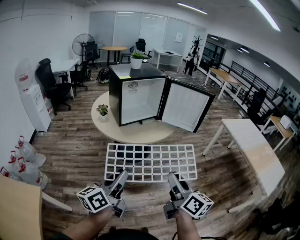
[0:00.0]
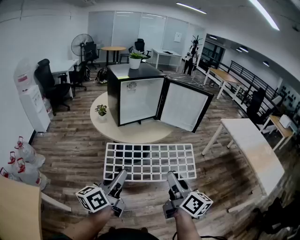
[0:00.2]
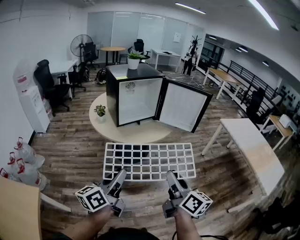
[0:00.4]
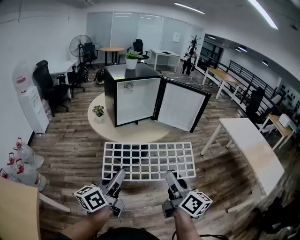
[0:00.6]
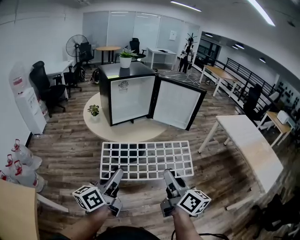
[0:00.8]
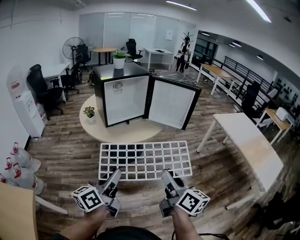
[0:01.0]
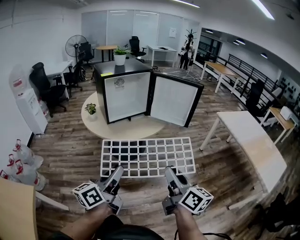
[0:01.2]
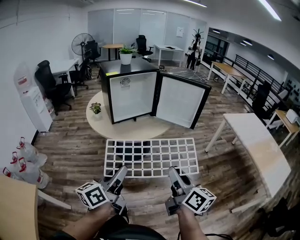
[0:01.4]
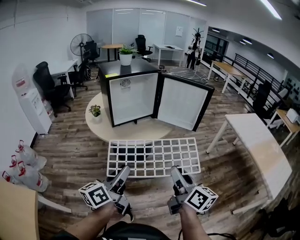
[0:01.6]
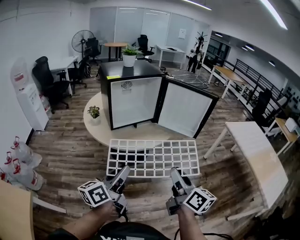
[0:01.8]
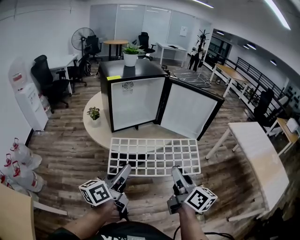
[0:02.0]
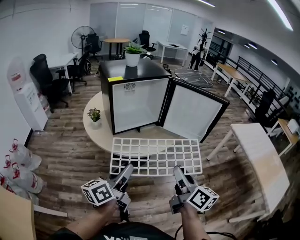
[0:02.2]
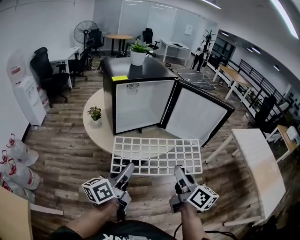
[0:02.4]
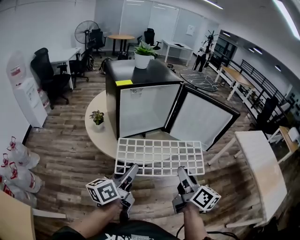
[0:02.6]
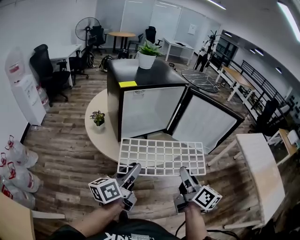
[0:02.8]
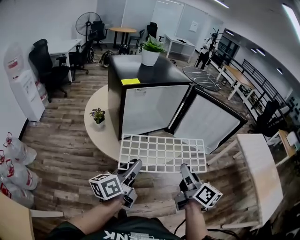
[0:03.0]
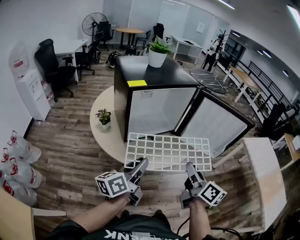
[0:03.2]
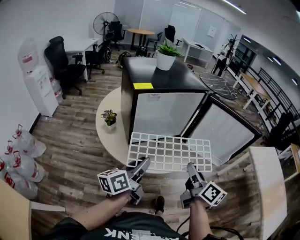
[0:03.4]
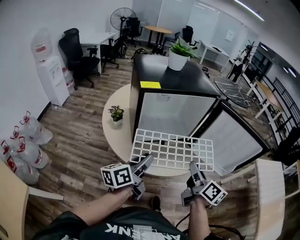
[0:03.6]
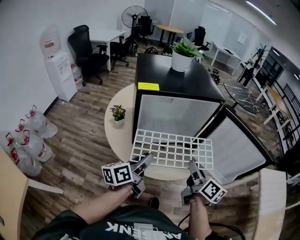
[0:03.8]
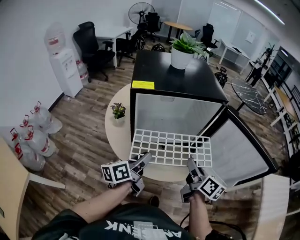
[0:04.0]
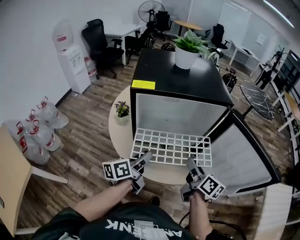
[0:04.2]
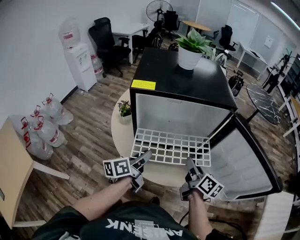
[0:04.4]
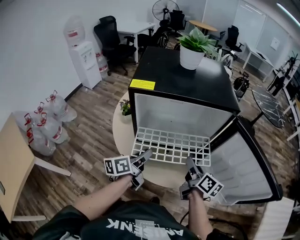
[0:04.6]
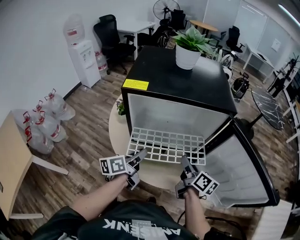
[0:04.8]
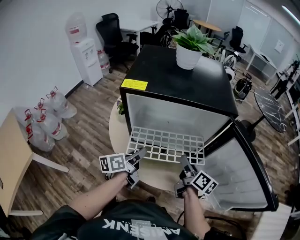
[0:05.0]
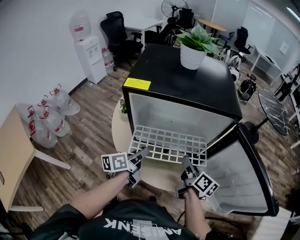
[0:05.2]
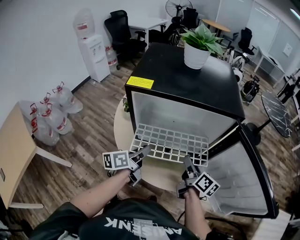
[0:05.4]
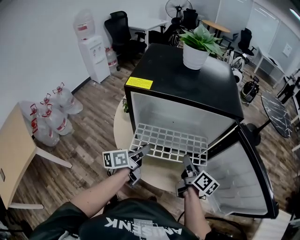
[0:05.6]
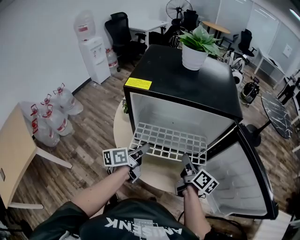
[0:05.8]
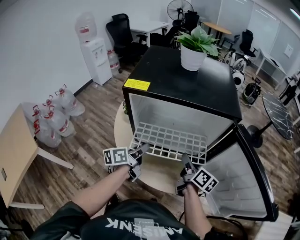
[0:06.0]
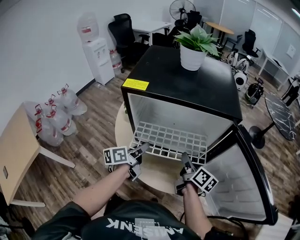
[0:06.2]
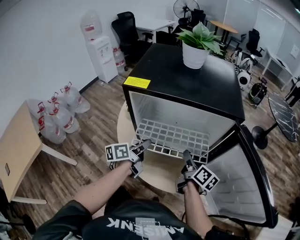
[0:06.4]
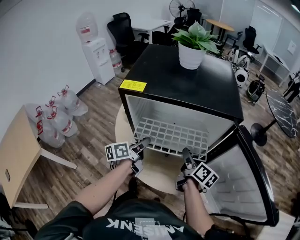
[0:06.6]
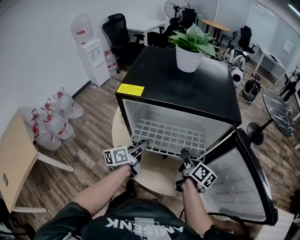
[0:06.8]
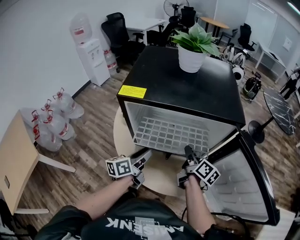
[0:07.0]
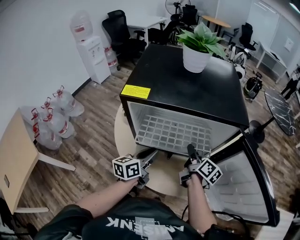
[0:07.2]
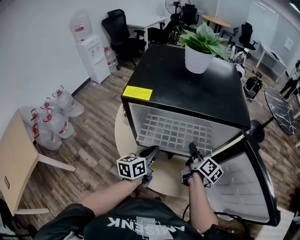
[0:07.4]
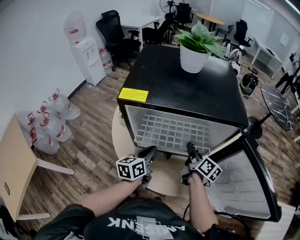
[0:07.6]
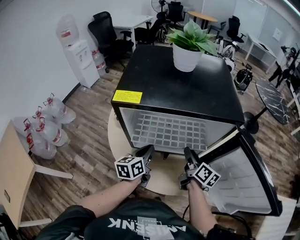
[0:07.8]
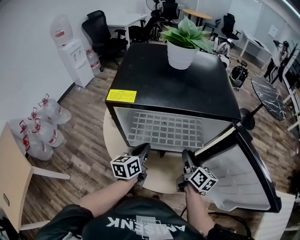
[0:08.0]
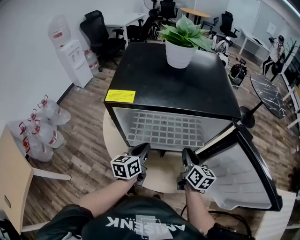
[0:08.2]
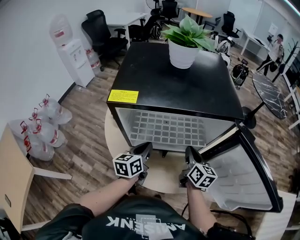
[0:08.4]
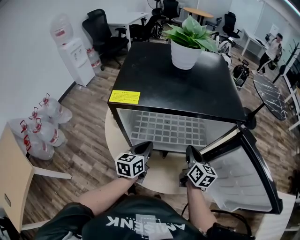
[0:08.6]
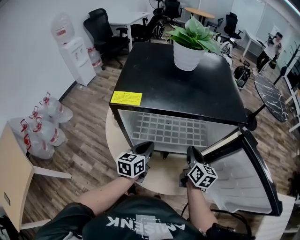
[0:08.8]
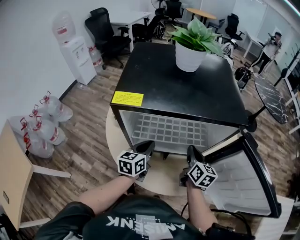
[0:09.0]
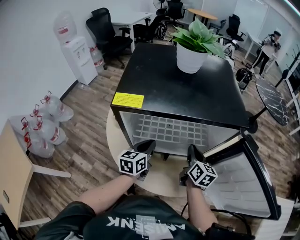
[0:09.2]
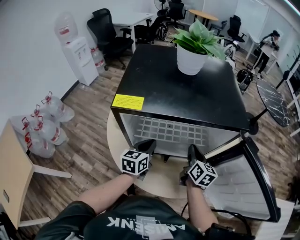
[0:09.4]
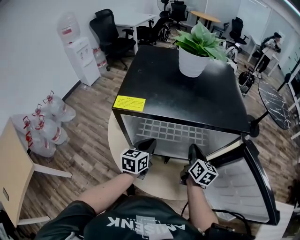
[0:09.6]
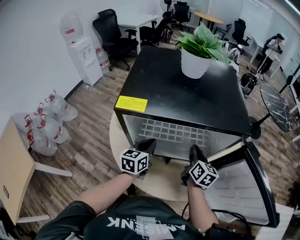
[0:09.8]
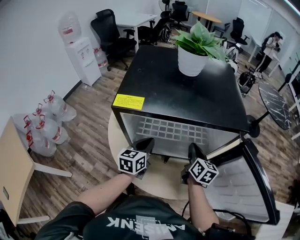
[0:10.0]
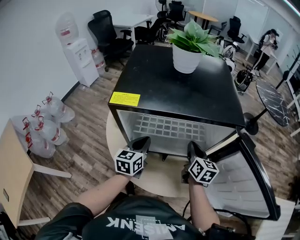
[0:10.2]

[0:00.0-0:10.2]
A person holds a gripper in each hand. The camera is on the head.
0:00.0 to 0:01.4: The grippers both shift to the right by approximately 10 cm.
0:01.4 to 0:03.0: The two grippers go approximately 30 cm forward.
0:03.0 to 0:04.4: The right gripper changes place by roughly 25 cm, and turns by some 30 degrees. Meanwhile the left gripper shifts by about 20 cm, and rotates roughly 20 degrees.
0:04.4 to 0:05.8: The two grippers go roughly 5 cm forward.
0:05.8 to 0:07.2: The right gripper is displaced forward by about 5 cm.
0:07.2 to 0:08.8: The right gripper turns by some 30 degrees, and closes its fingers; the left gripper moves forward, roughly 5 cm, and closes its fingers.
0:08.8 to 0:10.2: The grippers move only a little.

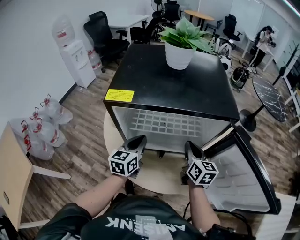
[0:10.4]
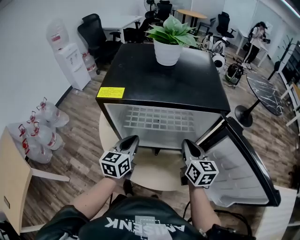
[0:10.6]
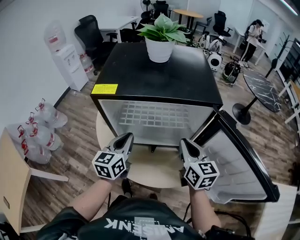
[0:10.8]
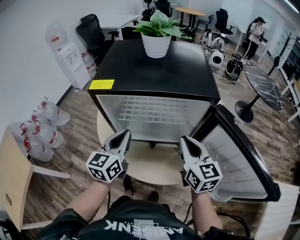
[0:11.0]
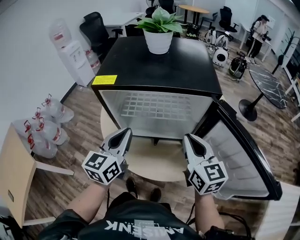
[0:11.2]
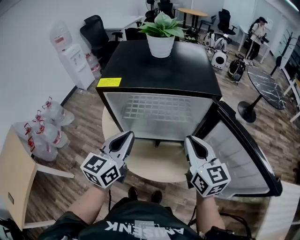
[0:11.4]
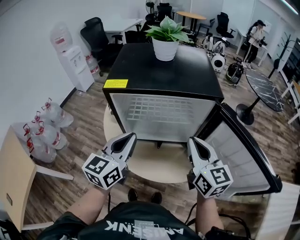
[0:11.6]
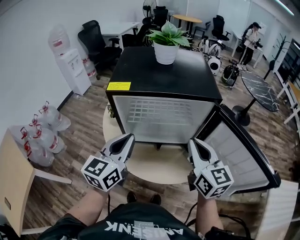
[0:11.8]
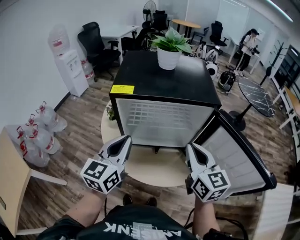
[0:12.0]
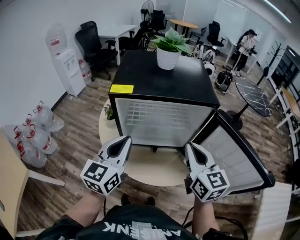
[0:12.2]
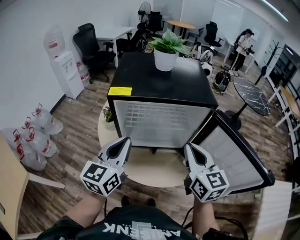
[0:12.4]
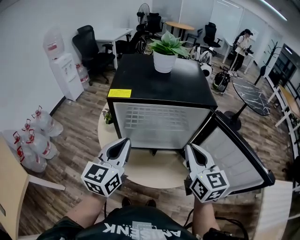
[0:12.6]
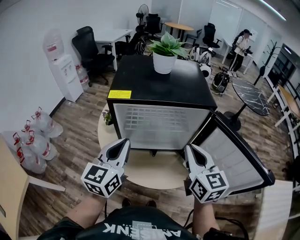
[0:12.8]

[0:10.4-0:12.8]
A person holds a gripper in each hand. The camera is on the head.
0:10.4 to 0:11.6: The two grippers go approximately 20 cm upward and backward.
0:11.6 to 0:12.8: There are only small adjustments of the grippers.

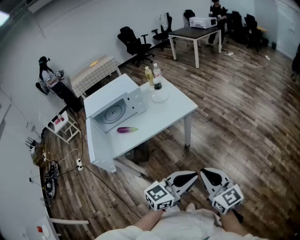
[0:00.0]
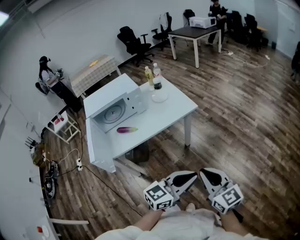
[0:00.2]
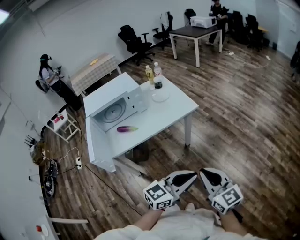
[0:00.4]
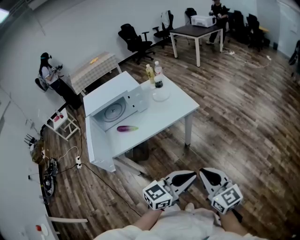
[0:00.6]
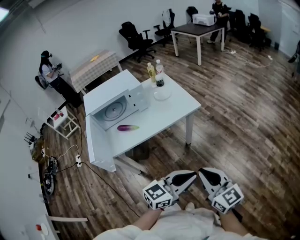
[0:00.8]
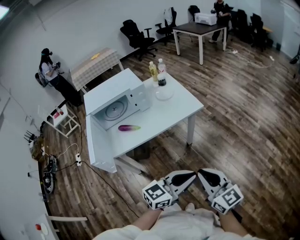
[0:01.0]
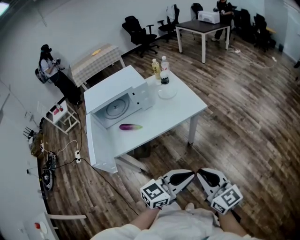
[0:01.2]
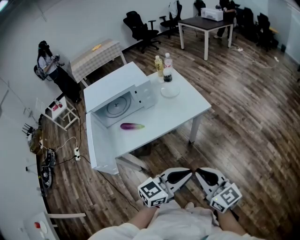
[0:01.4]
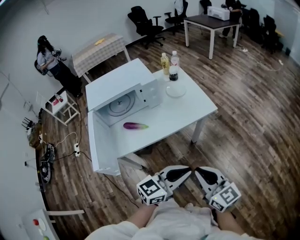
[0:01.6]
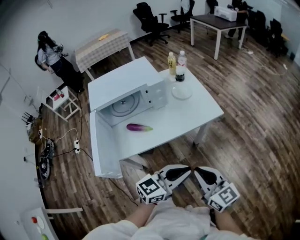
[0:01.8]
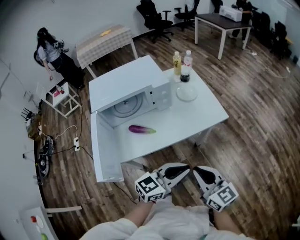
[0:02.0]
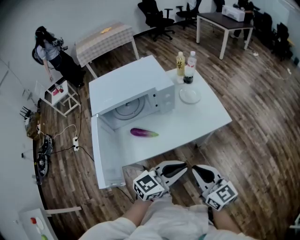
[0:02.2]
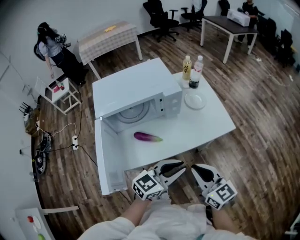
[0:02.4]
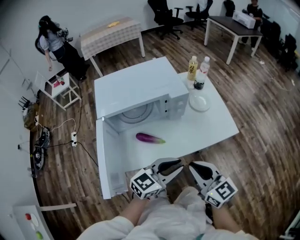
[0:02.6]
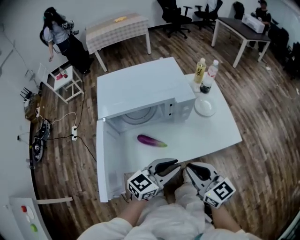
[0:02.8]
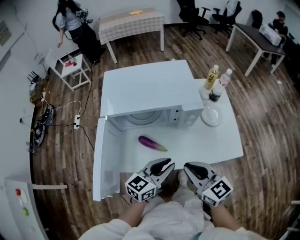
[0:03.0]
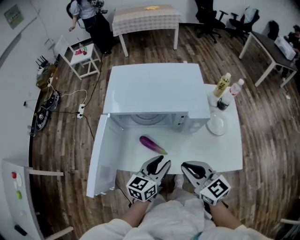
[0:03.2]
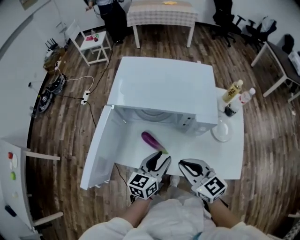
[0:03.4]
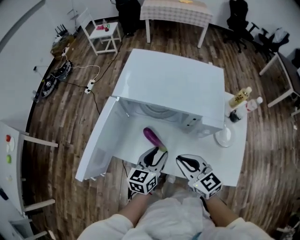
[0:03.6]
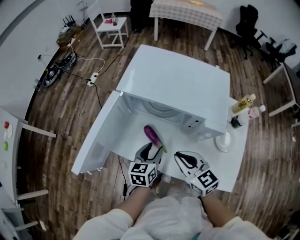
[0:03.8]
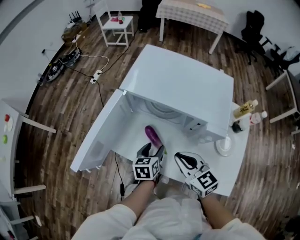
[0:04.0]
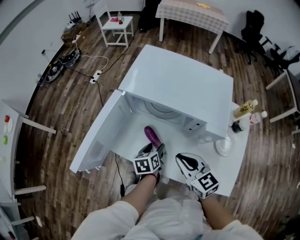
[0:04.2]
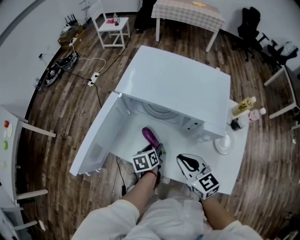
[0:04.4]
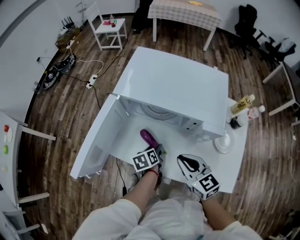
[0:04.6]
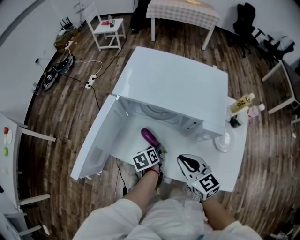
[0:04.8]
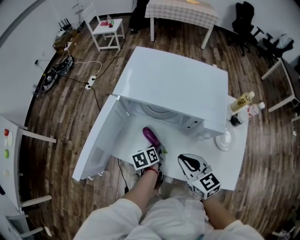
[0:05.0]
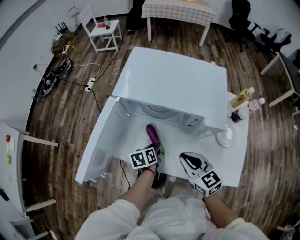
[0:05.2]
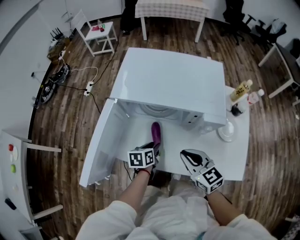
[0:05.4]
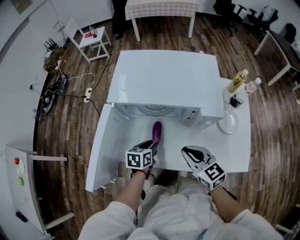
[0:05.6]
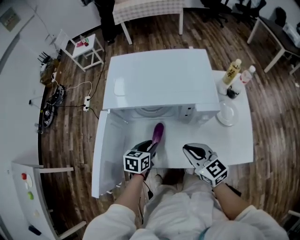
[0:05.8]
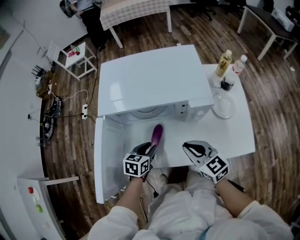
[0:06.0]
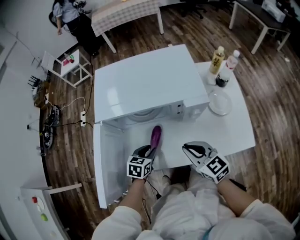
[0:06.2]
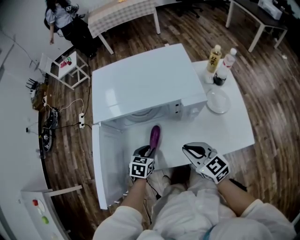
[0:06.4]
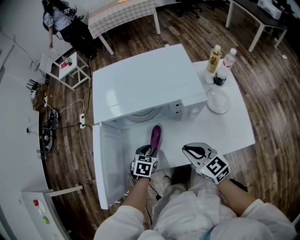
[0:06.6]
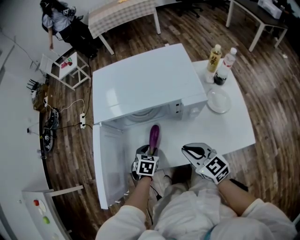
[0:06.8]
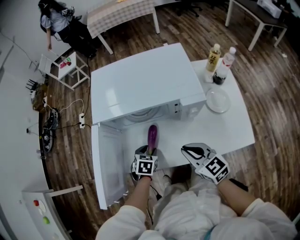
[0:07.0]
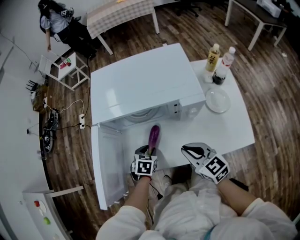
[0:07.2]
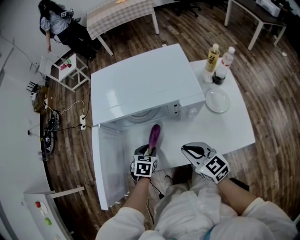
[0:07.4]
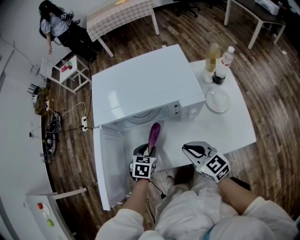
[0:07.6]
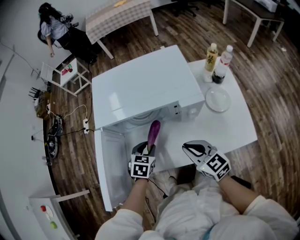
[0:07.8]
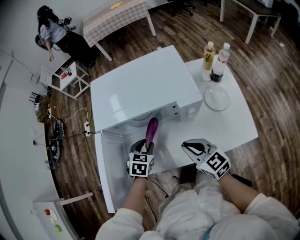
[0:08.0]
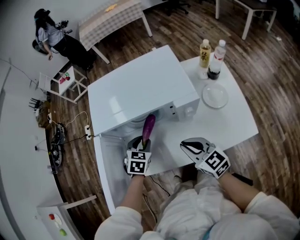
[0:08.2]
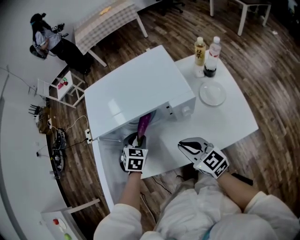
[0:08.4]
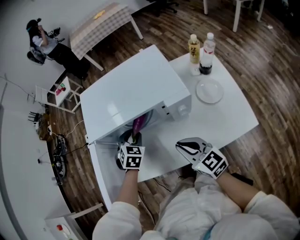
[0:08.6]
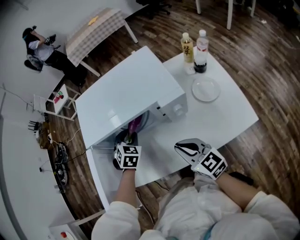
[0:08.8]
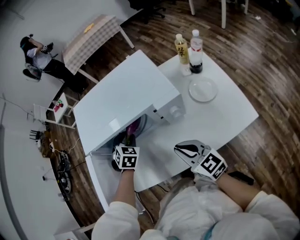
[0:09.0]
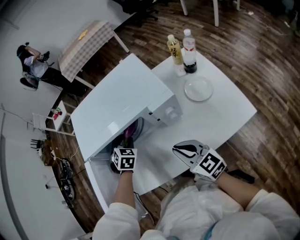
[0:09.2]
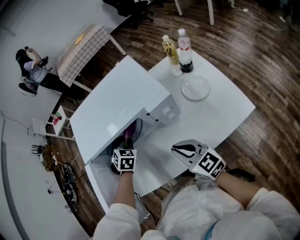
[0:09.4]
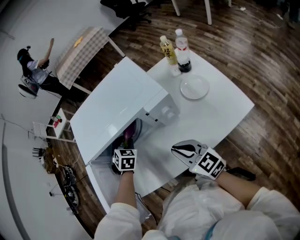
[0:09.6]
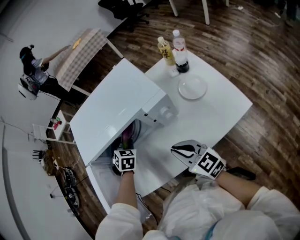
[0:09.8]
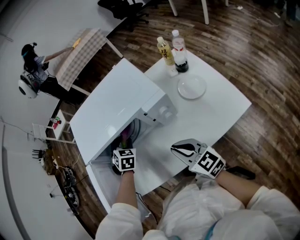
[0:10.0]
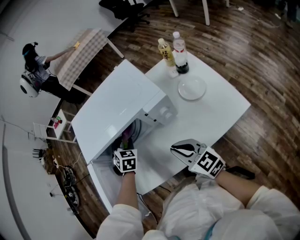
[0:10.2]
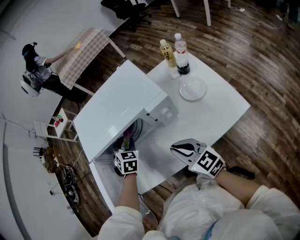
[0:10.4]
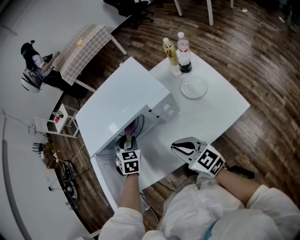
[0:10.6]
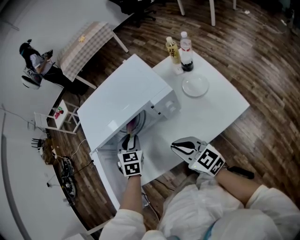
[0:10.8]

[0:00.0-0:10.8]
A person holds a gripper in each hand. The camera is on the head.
0:00.0 to 0:01.6: The grippers both shift to the left and forward by some 15 cm.
0:01.6 to 0:03.0: The right gripper ends up roughly 30 cm from where it was, and changes its angle by approximately 30 degrees; the left gripper moves some 30 cm, and swivels roughly 30 degrees.
0:03.0 to 0:04.6: The right gripper changes place by approximately 15 cm, and rotates about 20 degrees. The left gripper travels downward by about 20 cm, angles its fingers downward, by some 40 degrees, and opens.
0:04.6 to 0:06.2: The left gripper rotates around the line of its fingers by some 60 degrees, clockwise from behind, and closes its fingers.
0:06.2 to 0:07.8: The grippers make only small movements.
0:07.8 to 0:09.2: The left gripper shifts roughly 15 cm forward, and changes its angle by about 30 degrees.
0:09.2 to 0:10.8: The right gripper moves approximately 5 cm; the left gripper moves upward and backward, some 10 cm.
